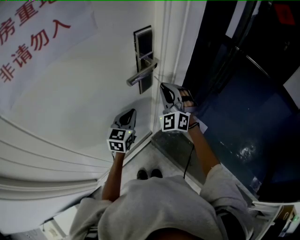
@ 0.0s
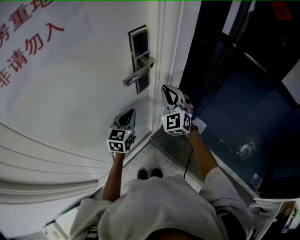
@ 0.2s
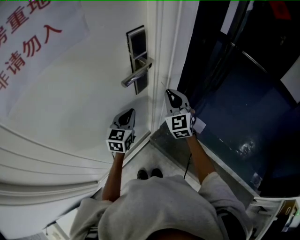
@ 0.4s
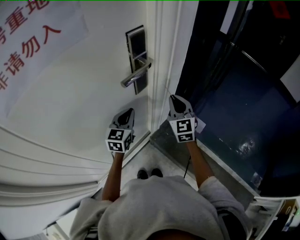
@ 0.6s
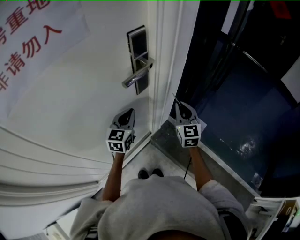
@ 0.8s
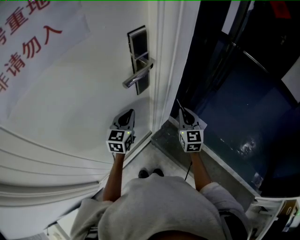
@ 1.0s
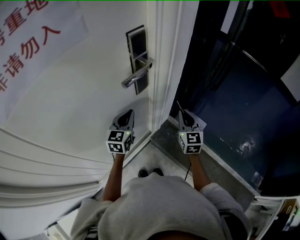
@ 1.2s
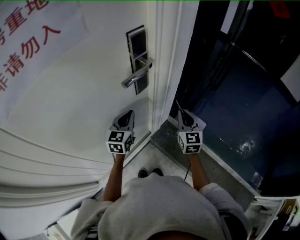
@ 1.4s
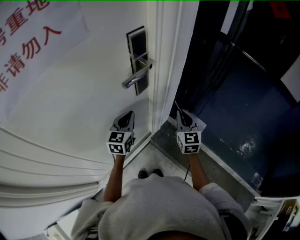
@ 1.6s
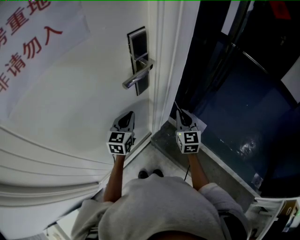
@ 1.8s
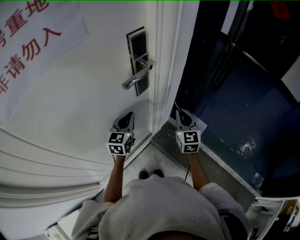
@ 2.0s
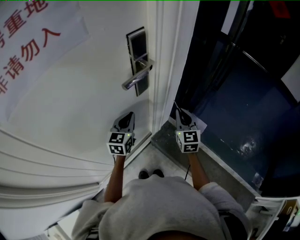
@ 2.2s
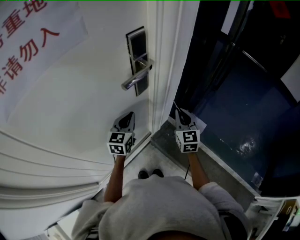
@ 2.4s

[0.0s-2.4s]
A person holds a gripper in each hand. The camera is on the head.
0.0s to 1.2s: The right gripper heads to the right and downward, covering approximately 15 cm, and rolls clockwise, seen from behind, by about 50 degrees.
1.2s to 2.4s: The grippers move only a little.

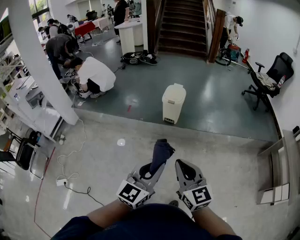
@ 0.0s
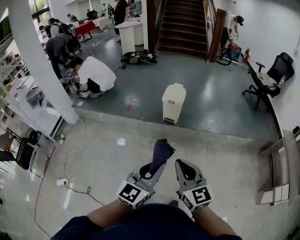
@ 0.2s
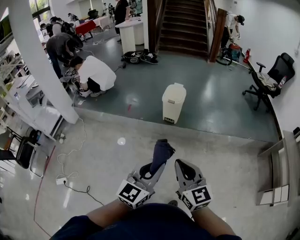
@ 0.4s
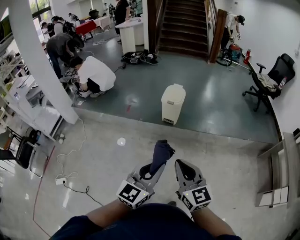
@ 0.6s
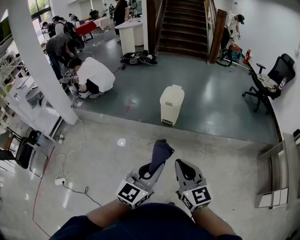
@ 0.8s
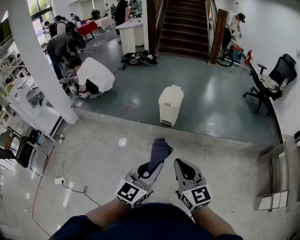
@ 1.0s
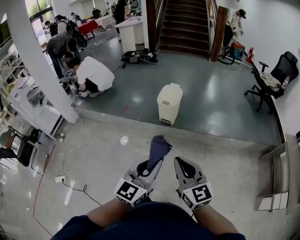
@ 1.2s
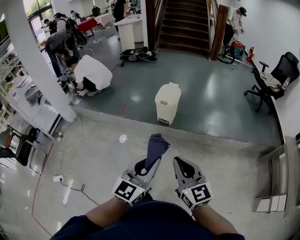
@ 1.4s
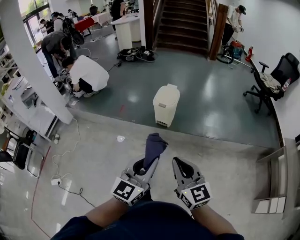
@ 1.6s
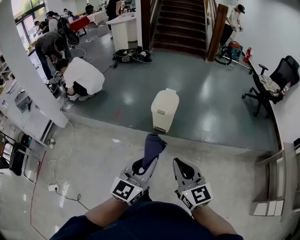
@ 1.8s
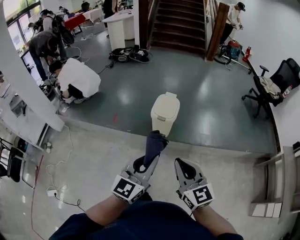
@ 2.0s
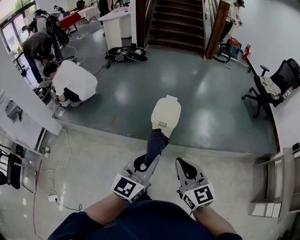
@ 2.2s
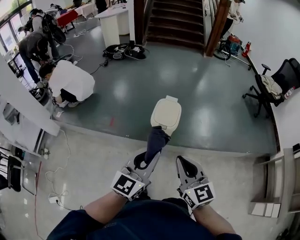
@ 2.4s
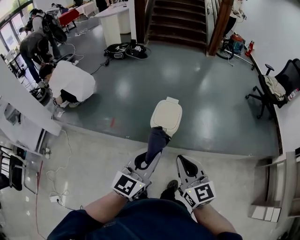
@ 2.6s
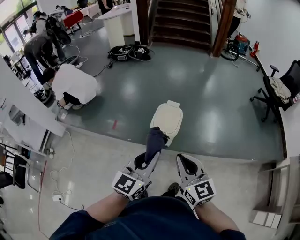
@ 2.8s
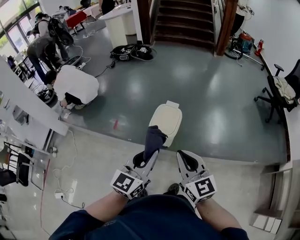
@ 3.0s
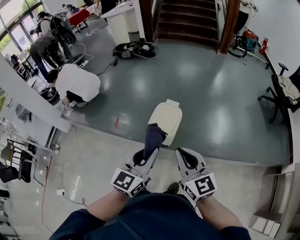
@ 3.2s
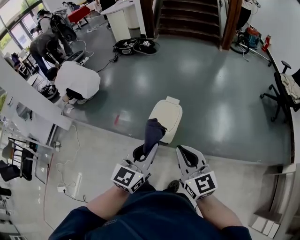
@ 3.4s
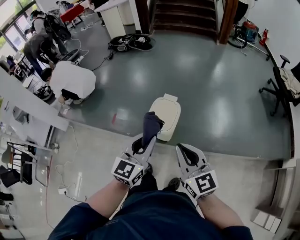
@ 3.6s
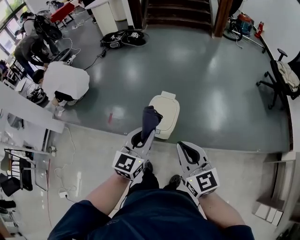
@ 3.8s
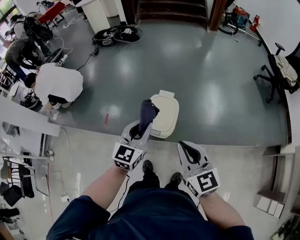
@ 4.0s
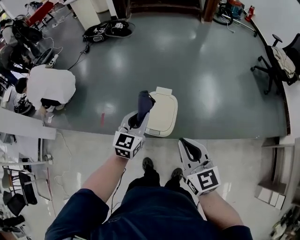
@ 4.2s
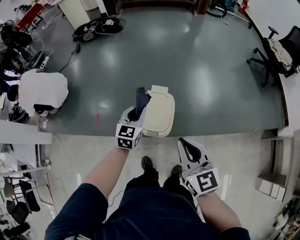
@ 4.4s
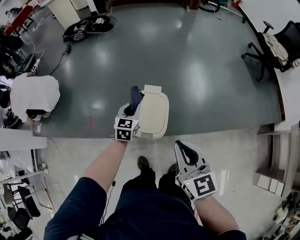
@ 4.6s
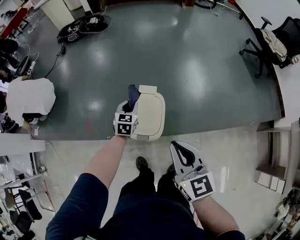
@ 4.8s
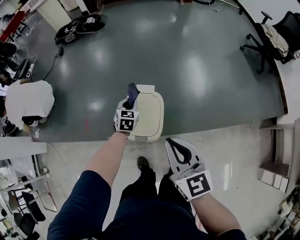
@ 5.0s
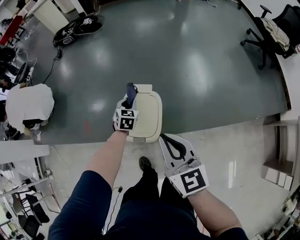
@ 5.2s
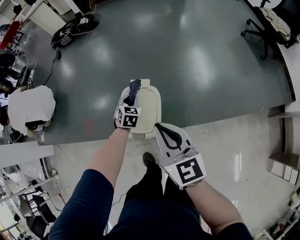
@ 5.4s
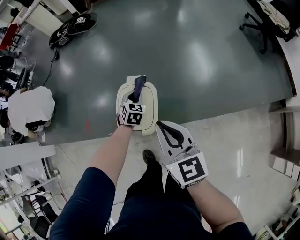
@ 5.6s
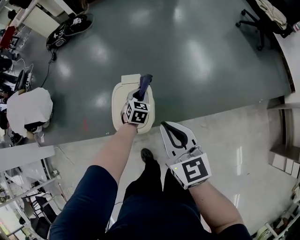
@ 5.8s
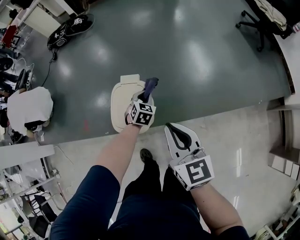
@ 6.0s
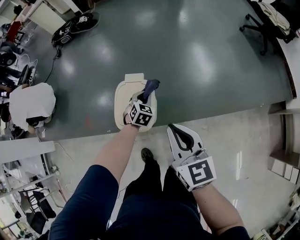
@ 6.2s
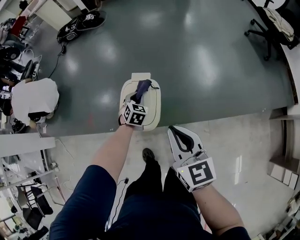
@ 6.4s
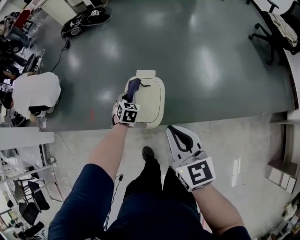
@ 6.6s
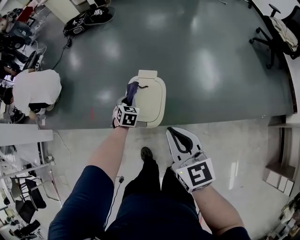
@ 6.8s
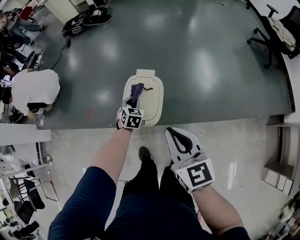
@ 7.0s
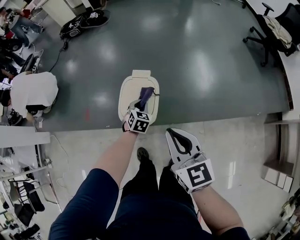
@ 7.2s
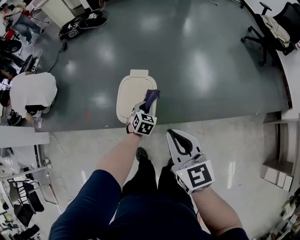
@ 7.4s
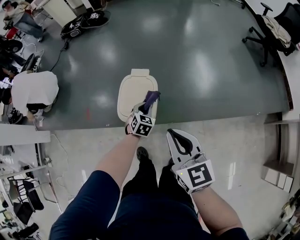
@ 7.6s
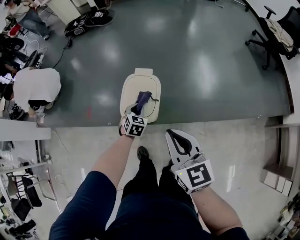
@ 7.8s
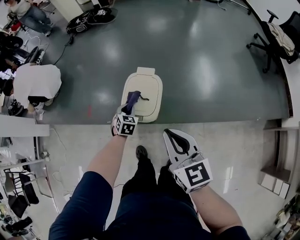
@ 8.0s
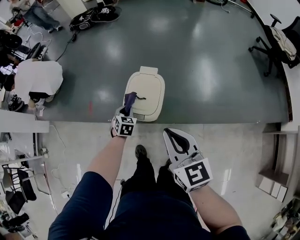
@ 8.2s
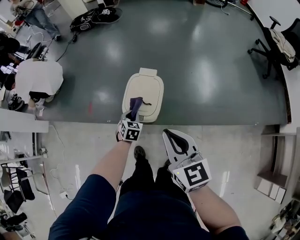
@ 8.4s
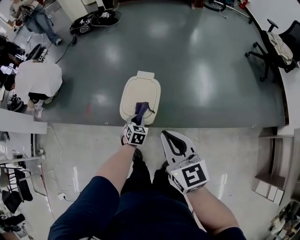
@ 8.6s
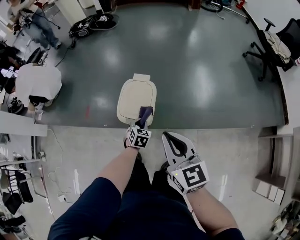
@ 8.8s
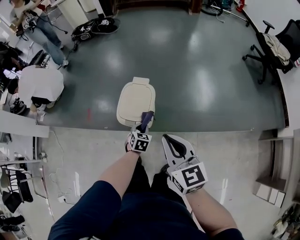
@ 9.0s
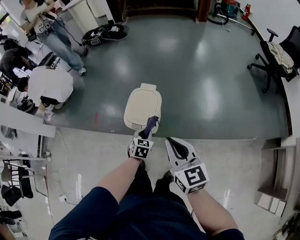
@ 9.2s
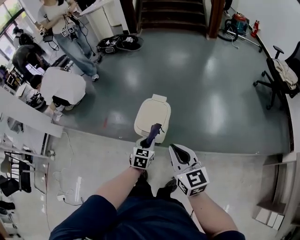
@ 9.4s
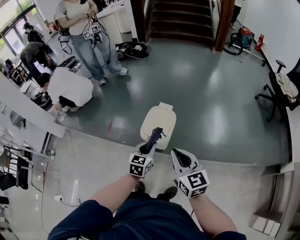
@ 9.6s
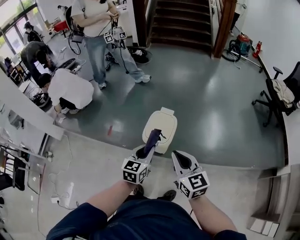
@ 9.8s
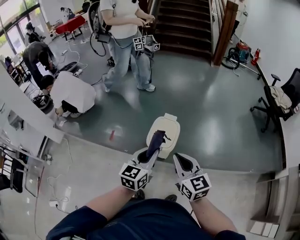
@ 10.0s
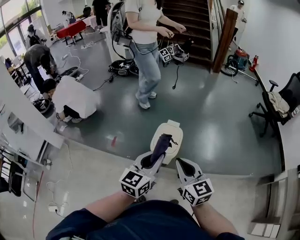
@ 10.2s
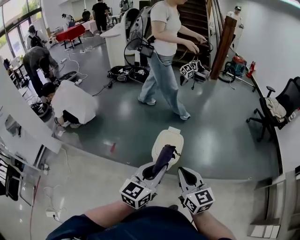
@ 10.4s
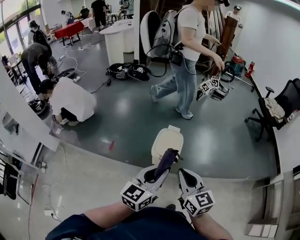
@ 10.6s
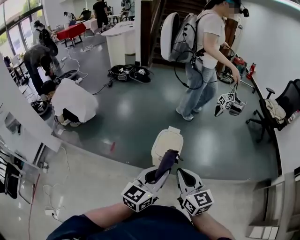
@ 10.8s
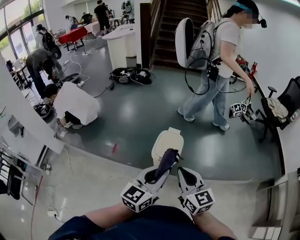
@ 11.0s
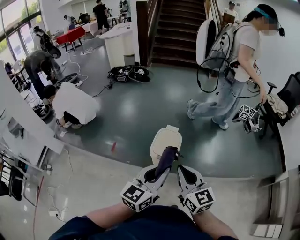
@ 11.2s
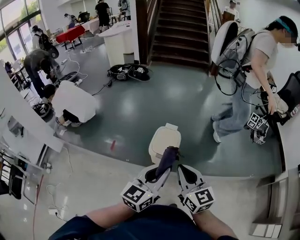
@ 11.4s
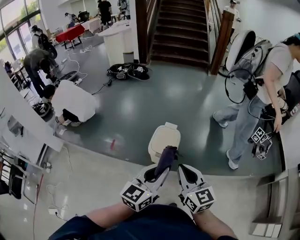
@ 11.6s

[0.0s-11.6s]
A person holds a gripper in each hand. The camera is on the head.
0.0s to 1.4s: The two grippers go roughly 10 cm to the right and forward.
1.4s to 2.8s: The two grippers travel together, forward, approximately 40 cm.
2.8s to 4.4s: The right gripper shifts about 20 cm forward. The left gripper travels forward and downward by some 40 cm, and changes its angle by some 20 degrees.
4.4s to 5.8s: The left gripper is displaced downward and to the right by roughly 25 cm, and swivels roughly 30 degrees. Meanwhile the right gripper moves to the right and downward, some 10 cm.
5.8s to 7.2s: The two grippers go some 5 cm backward. The left gripper moves roughly 15 cm to the left and comes back.
7.2s to 8.8s: The left gripper shifts approximately 10 cm backward, and goes to the left and returns, roughly 10 cm each way.
8.8s to 10.2s: The left gripper moves upward, approximately 40 cm, and tilts its fingers roughly 40 degrees upward; the right gripper moves to the left, upward and backward, some 15 cm.
10.2s to 11.6s: The left gripper travels backward by approximately 5 cm.

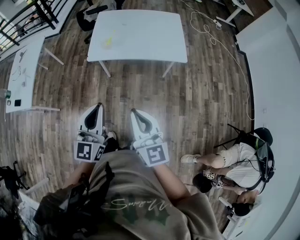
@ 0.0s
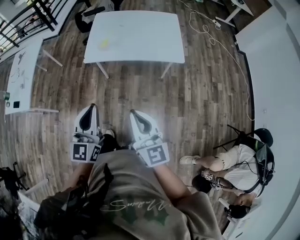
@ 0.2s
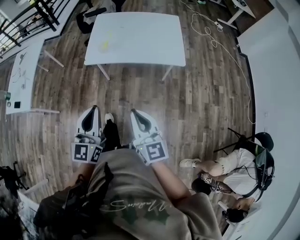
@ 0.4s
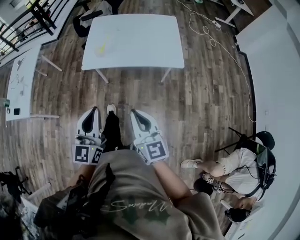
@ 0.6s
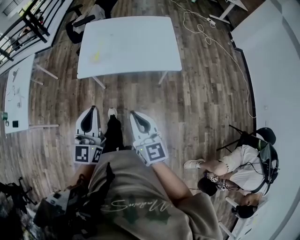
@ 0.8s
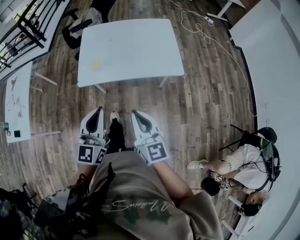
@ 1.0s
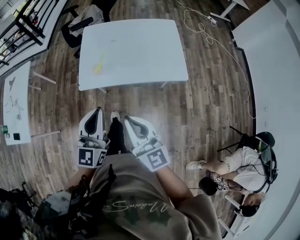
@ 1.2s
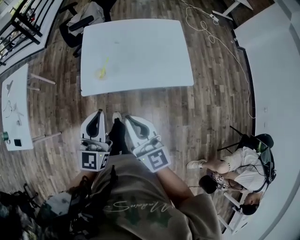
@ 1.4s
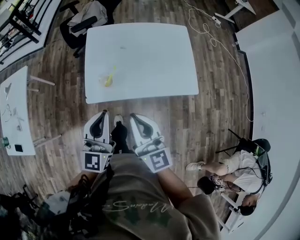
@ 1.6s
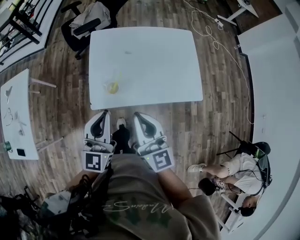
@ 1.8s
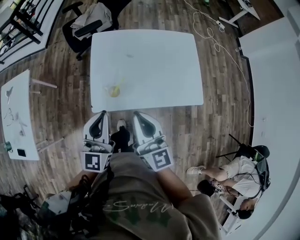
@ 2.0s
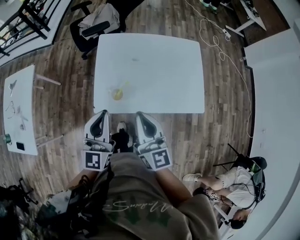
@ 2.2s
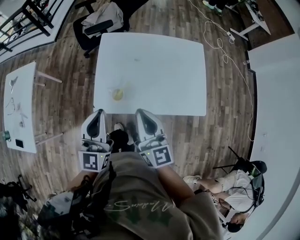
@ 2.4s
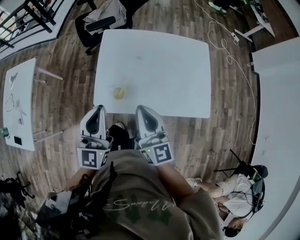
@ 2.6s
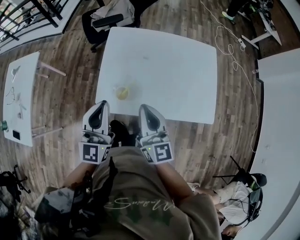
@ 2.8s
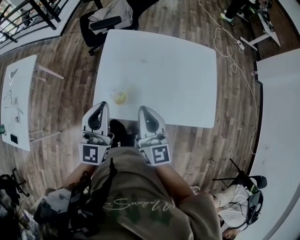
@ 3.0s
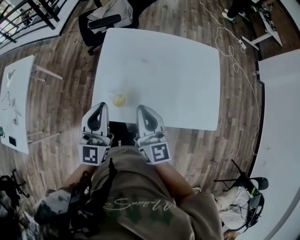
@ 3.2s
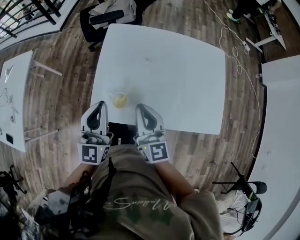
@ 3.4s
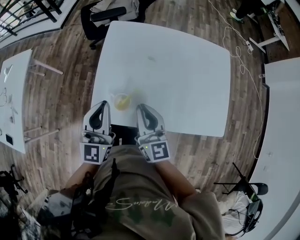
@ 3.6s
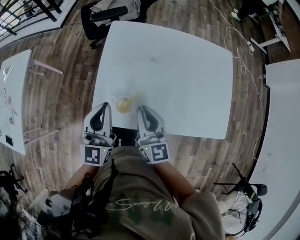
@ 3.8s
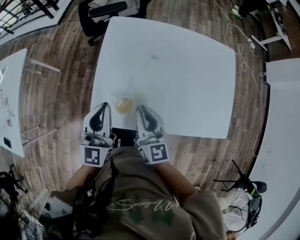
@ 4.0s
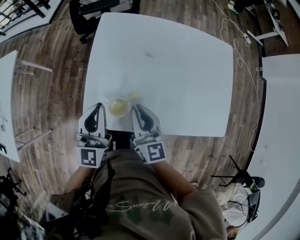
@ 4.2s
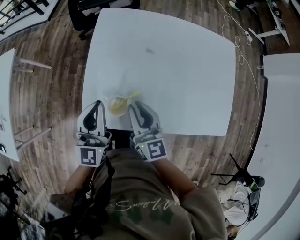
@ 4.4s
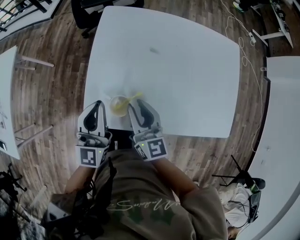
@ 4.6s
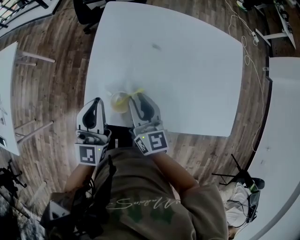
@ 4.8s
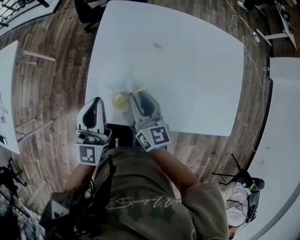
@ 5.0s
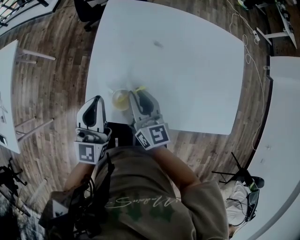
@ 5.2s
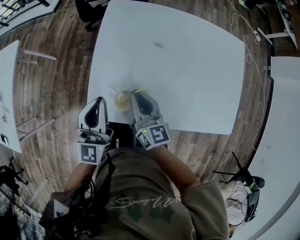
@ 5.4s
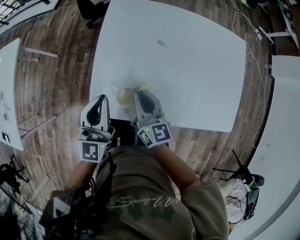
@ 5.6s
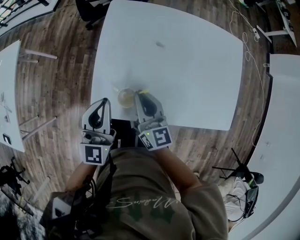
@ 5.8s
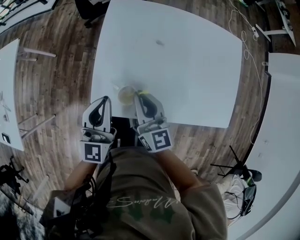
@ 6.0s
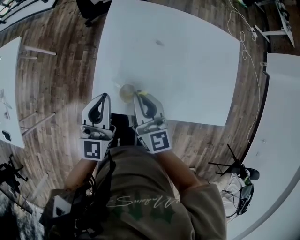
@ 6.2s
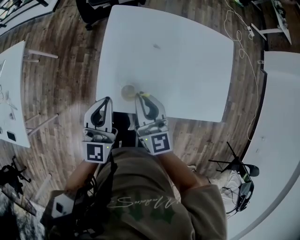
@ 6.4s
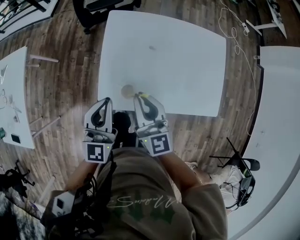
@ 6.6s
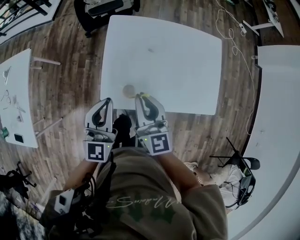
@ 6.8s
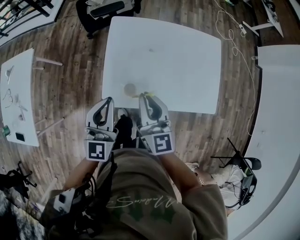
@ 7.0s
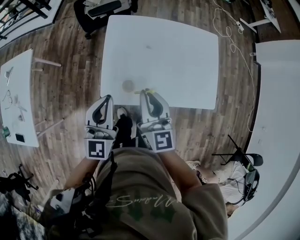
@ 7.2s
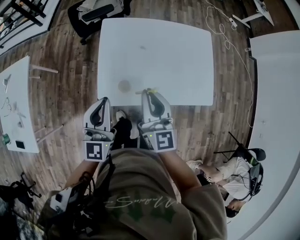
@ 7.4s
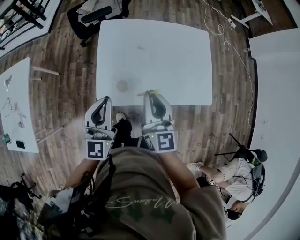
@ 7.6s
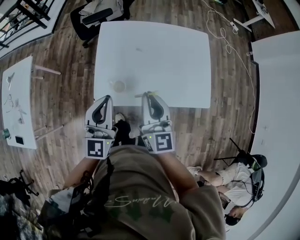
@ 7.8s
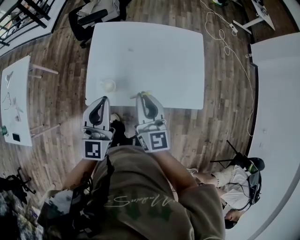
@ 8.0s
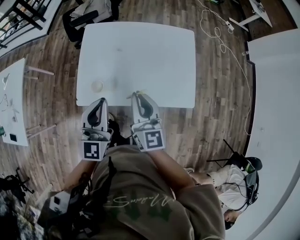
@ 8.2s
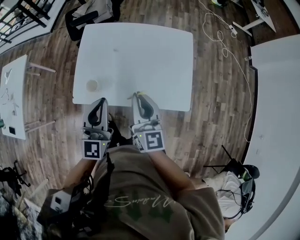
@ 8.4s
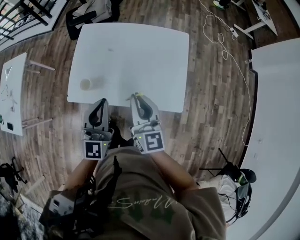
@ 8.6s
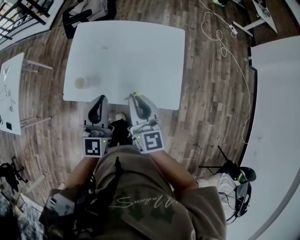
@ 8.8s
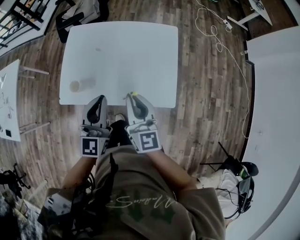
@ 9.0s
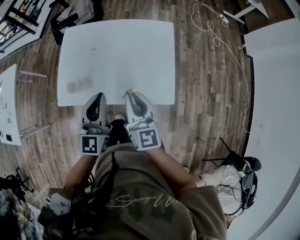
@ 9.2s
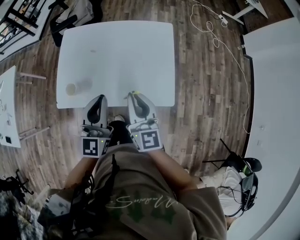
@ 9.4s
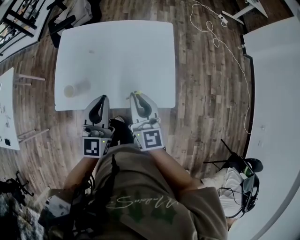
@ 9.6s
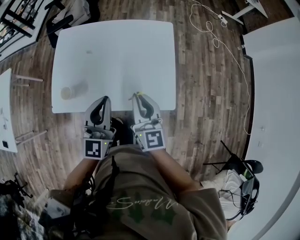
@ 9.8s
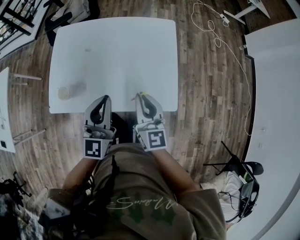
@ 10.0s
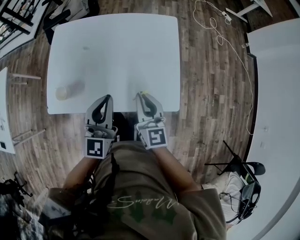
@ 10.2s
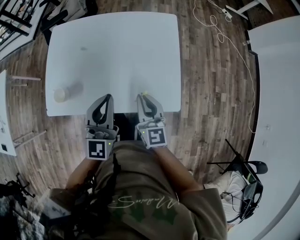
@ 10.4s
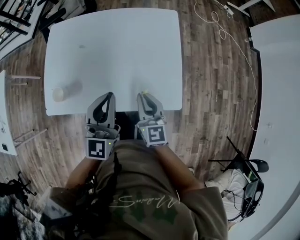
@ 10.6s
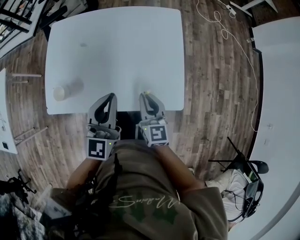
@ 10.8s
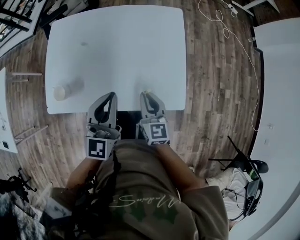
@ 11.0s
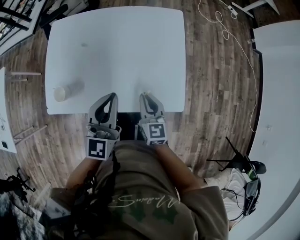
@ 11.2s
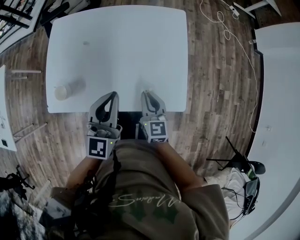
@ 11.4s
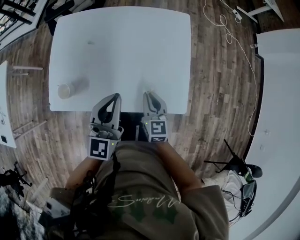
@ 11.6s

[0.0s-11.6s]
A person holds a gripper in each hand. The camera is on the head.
0.0s to 1.4s: Both grippers move forward, some 25 cm.
1.4s to 2.8s: The left gripper heads forward and to the left, covering about 20 cm; the right gripper travels forward by approximately 20 cm.
2.8s to 4.4s: The two grippers go approximately 20 cm downward.
4.4s to 5.8s: The grippers make only small movements.
5.8s to 7.2s: The grippers both shift upward by approximately 20 cm.
7.2s to 8.8s: Both grippers move to the right, some 30 cm.
8.8s to 10.2s: Both grippers move downward and to the right, about 15 cm.
10.2s to 11.6s: The right gripper moves downward, about 10 cm.
